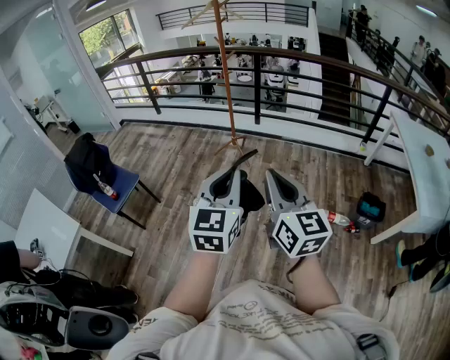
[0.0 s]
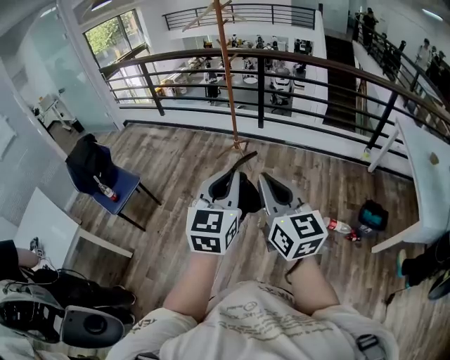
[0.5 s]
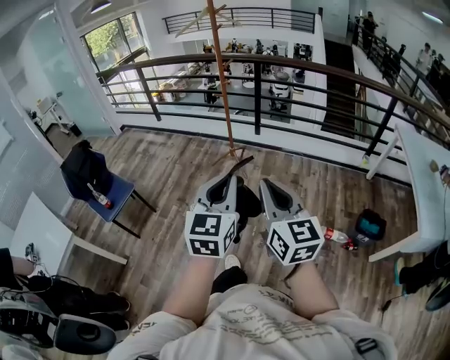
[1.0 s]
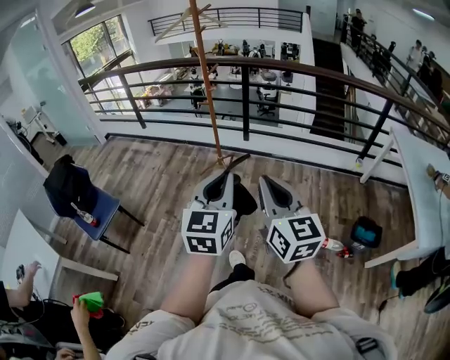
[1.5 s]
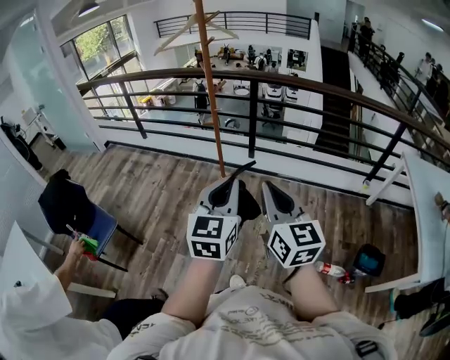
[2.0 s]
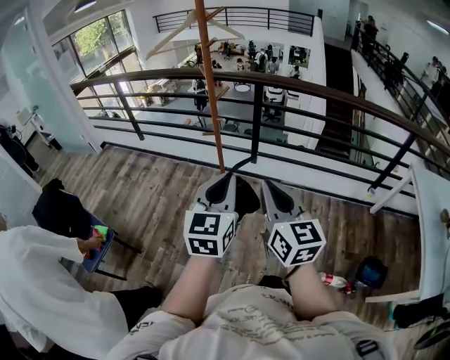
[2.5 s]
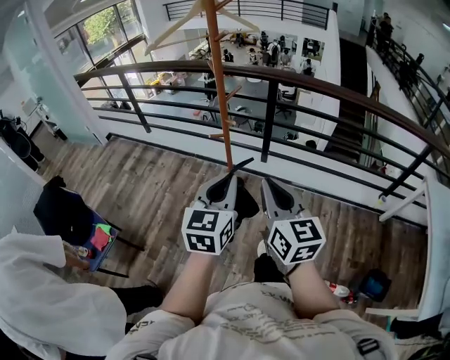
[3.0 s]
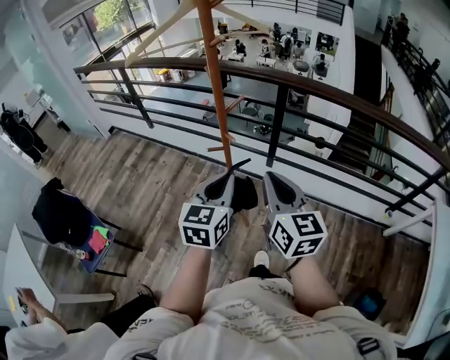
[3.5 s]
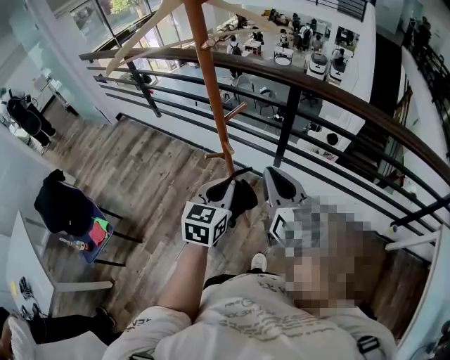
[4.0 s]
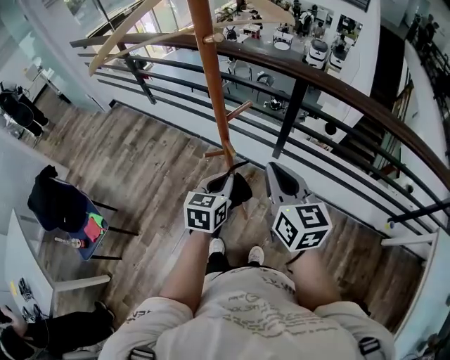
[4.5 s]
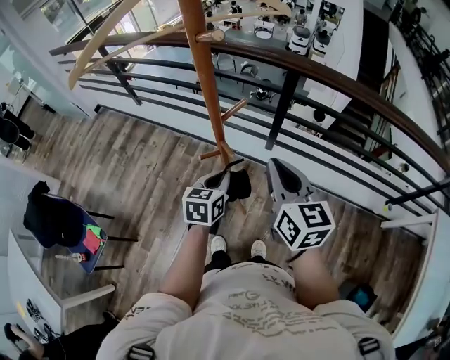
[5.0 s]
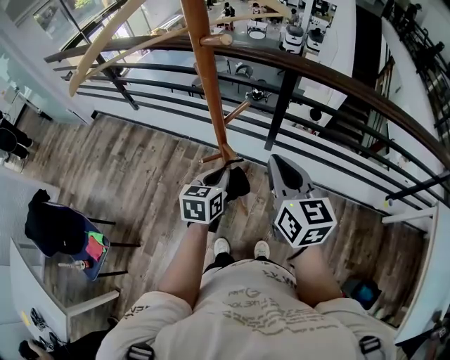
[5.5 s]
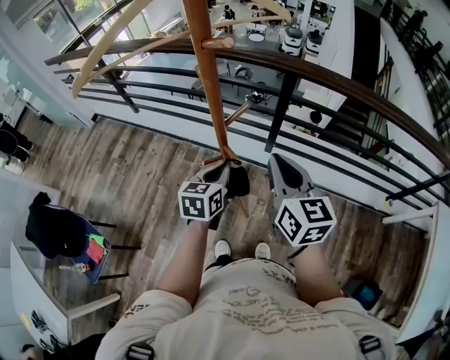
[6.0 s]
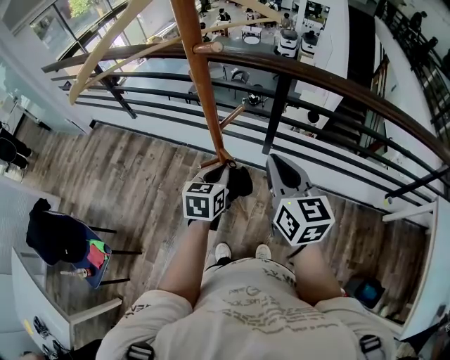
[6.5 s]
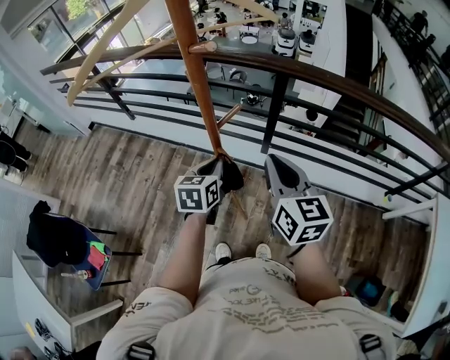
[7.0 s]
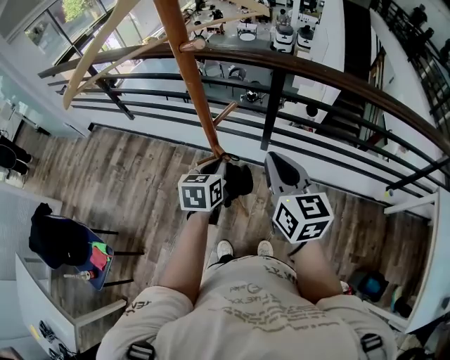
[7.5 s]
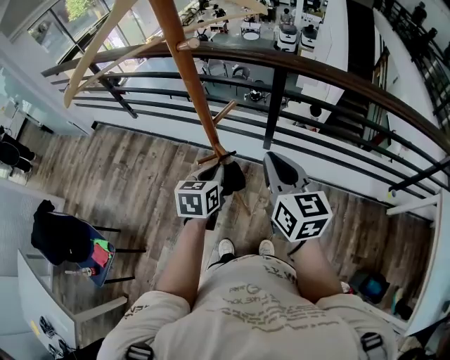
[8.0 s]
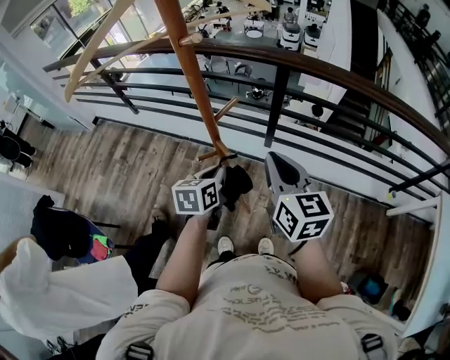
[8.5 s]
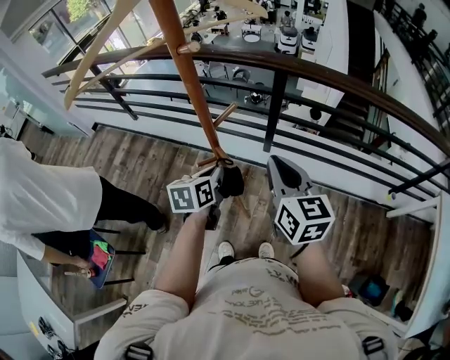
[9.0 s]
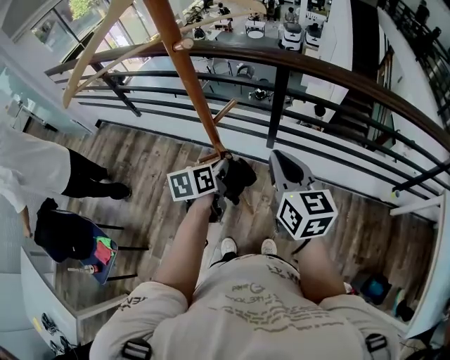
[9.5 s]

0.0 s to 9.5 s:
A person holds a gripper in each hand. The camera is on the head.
0.0 to 2.0 s: The pair of grippers is taken forward, approximately 40 cm.
2.0 to 4.0 s: The two grippers travel together, forward, some 50 cm.
4.0 to 5.5 s: The left gripper shifts roughly 15 cm forward, downward and to the left; the right gripper shifts roughly 10 cm forward.
5.5 to 7.5 s: The grippers stay close to where they were, moving slightly.
7.5 to 9.5 s: The left gripper changes its angle by about 20 degrees.

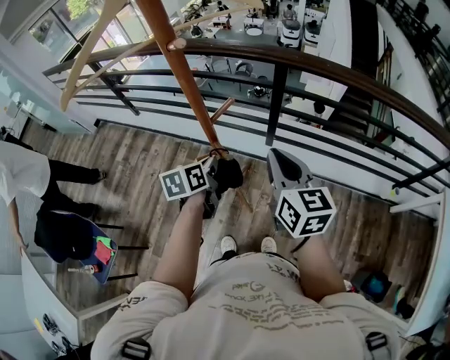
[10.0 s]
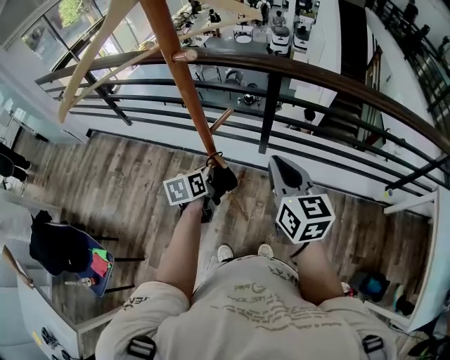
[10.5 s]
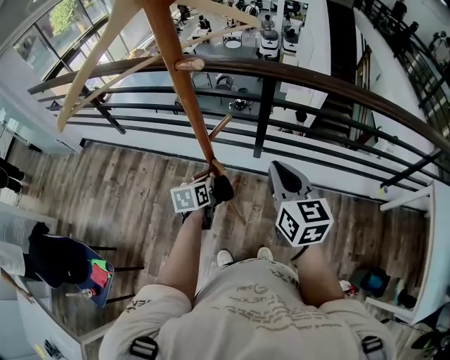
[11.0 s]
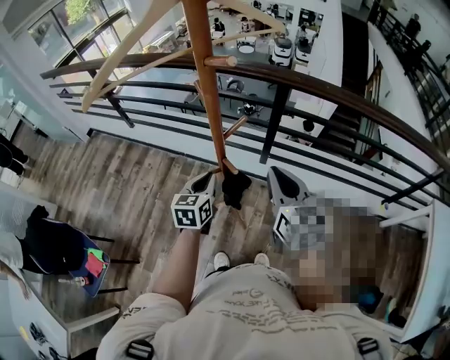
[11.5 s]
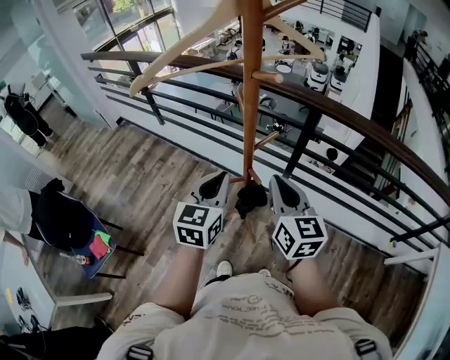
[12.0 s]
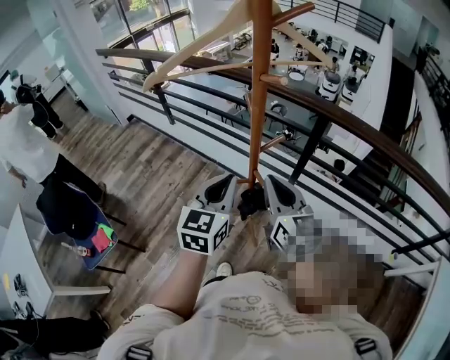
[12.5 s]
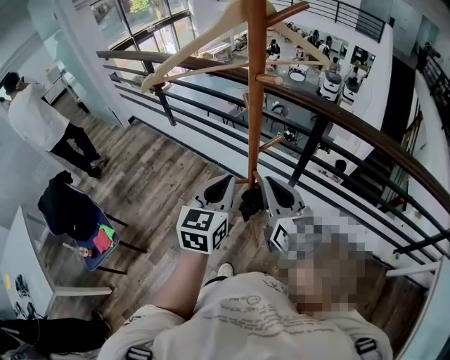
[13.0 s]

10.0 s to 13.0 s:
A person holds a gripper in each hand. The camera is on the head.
10.0 to 11.5 s: The left gripper reaches roughly 10 cm downward, then returns, and rotates about 20 degrees.
11.5 to 13.0 s: The left gripper goes approximately 15 cm upward and backward; the right gripper shifts roughly 5 cm to the left, and changes its angle by about 20 degrees.

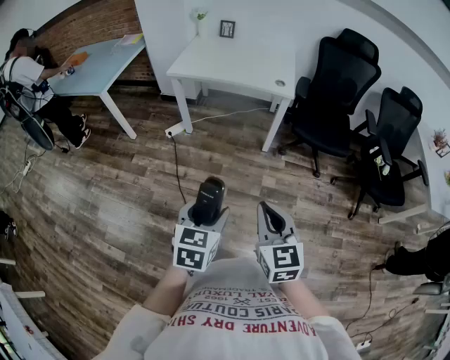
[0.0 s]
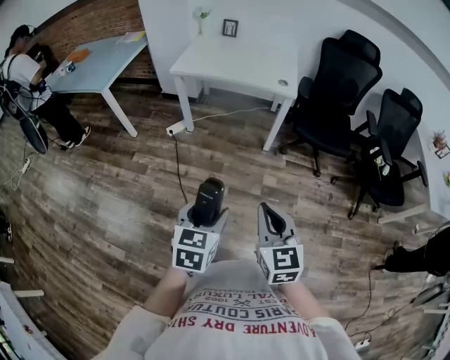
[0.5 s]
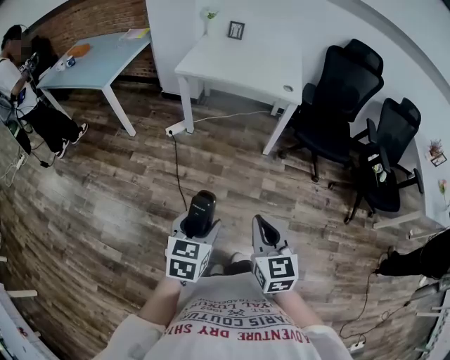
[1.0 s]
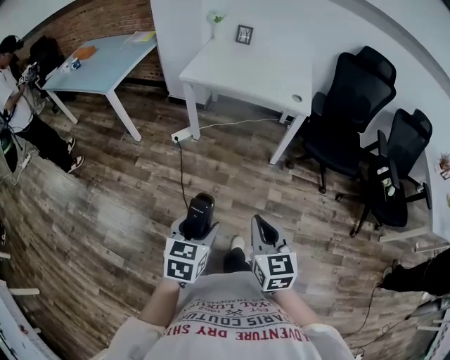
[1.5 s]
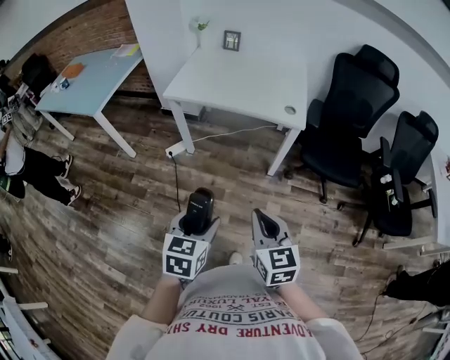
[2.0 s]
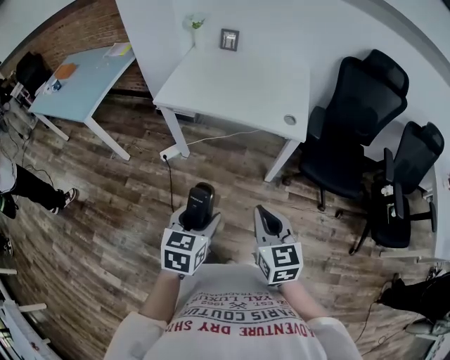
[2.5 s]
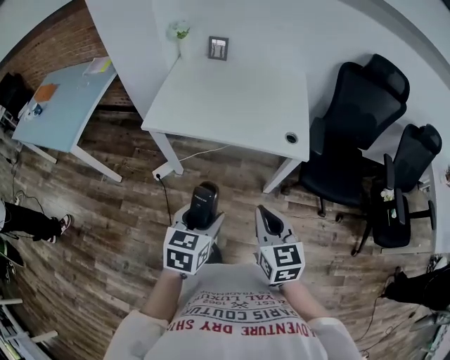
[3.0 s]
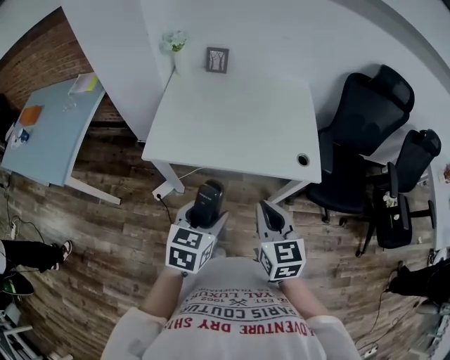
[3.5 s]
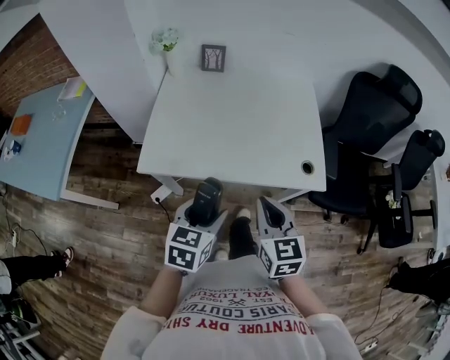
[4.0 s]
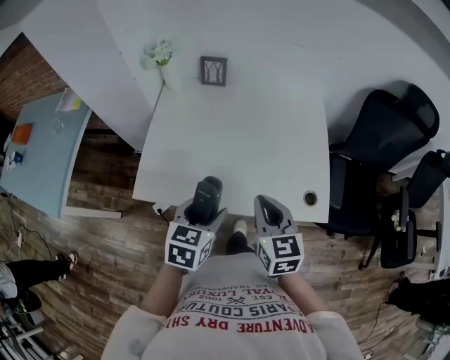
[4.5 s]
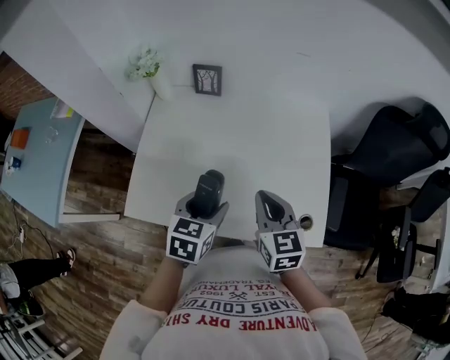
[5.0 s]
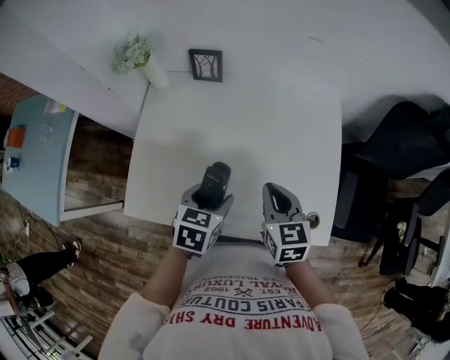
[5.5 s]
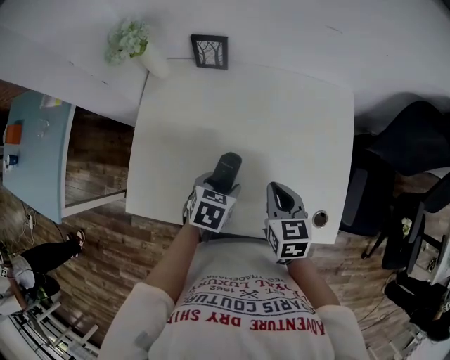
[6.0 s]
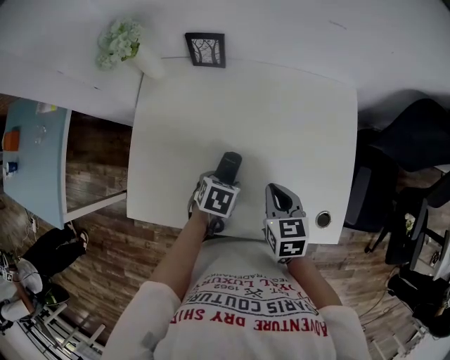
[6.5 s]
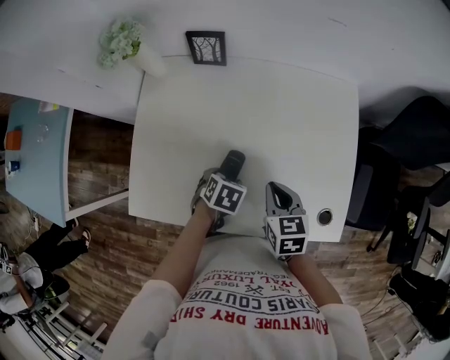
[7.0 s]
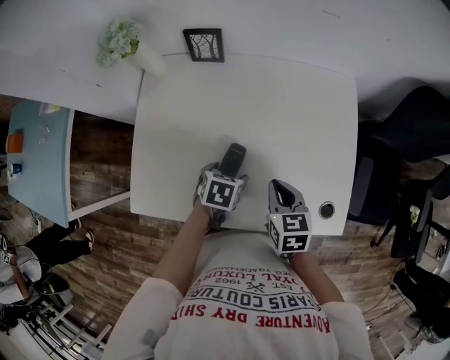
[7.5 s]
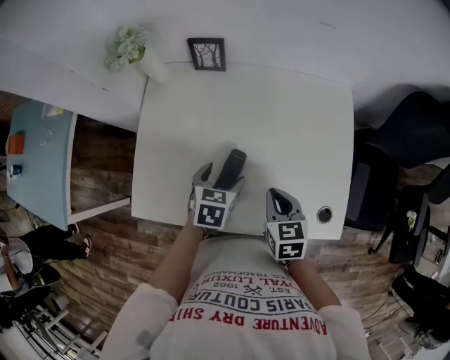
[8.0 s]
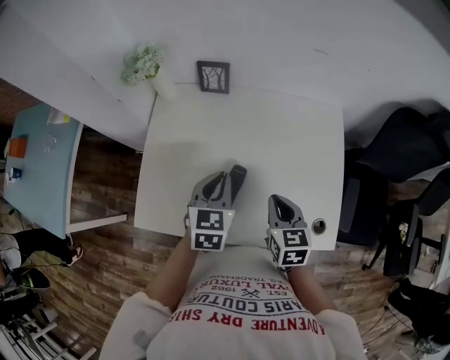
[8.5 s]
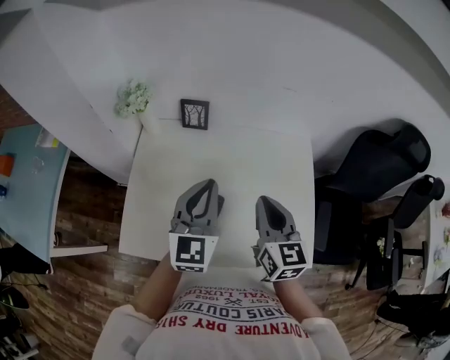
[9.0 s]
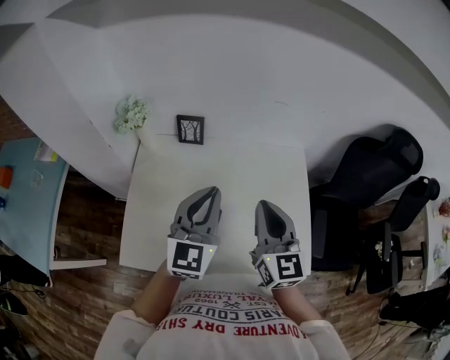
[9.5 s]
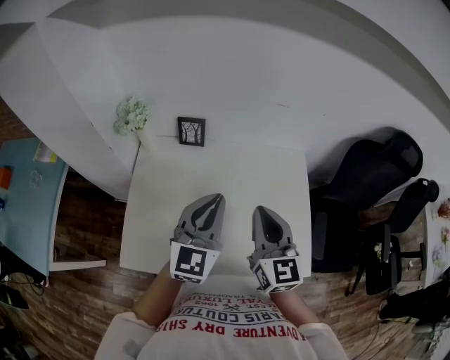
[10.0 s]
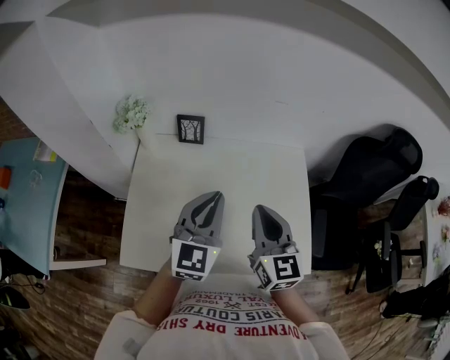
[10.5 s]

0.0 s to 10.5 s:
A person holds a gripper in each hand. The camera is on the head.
0.0 to 2.0 s: Both grippers move forward, some 20 cm.
2.0 to 4.0 s: The pair of grippers is taken forward, roughly 50 cm.
4.0 to 6.5 s: The two grippers go approximately 35 cm forward and downward. The right gripper changes its angle by approximately 20 degrees; the left gripper tips its fingers downward by roughly 30 degrees.
6.5 to 8.5 s: The left gripper moves upward, about 20 cm, angles its fingers upward, by about 40 degrees, and closes up; the right gripper shifts about 5 cm upward.
8.5 to 10.5 s: Both grippers move upward, some 15 cm. The right gripper turns by about 30 degrees, while the left gripper changes its angle by about 30 degrees.

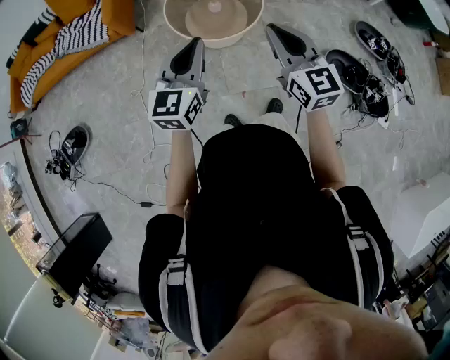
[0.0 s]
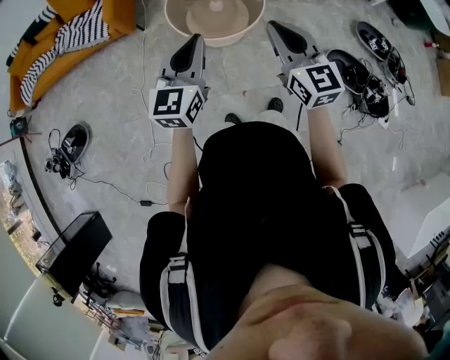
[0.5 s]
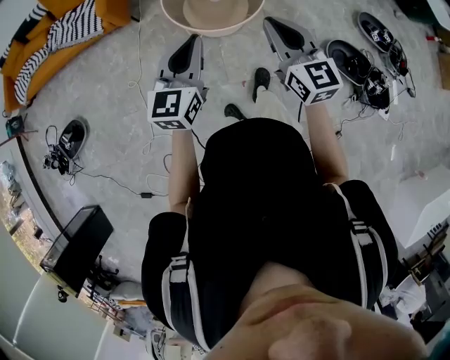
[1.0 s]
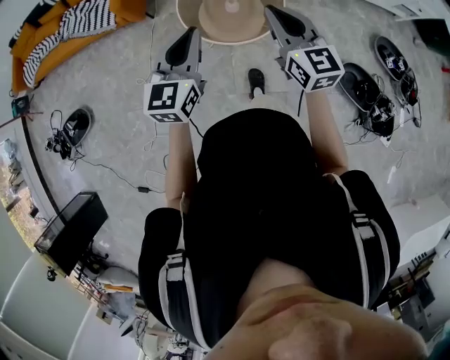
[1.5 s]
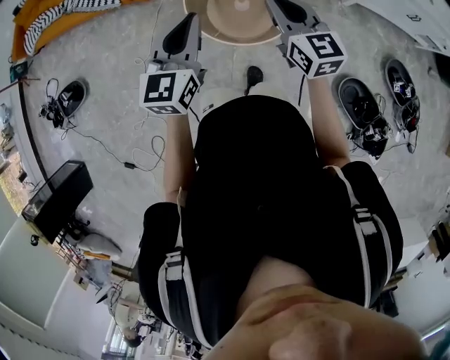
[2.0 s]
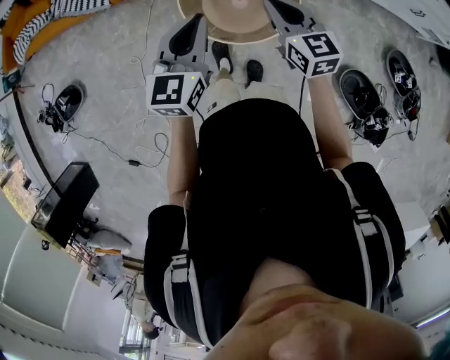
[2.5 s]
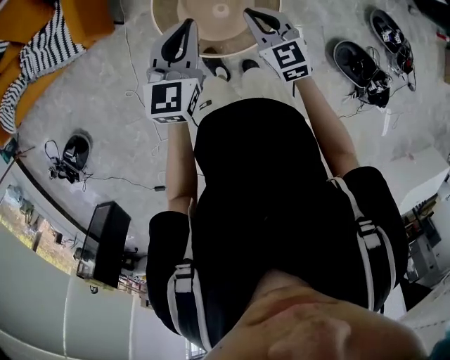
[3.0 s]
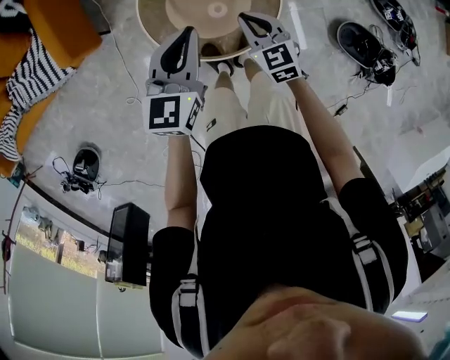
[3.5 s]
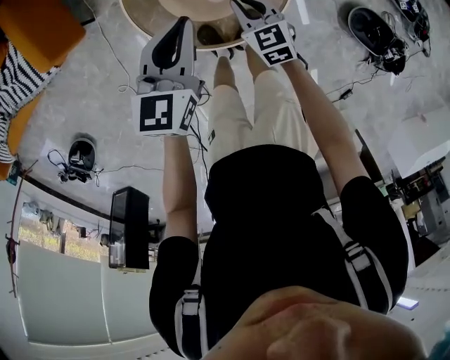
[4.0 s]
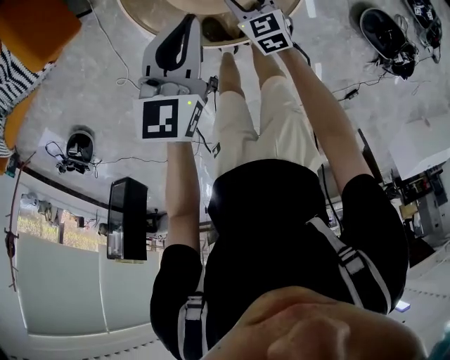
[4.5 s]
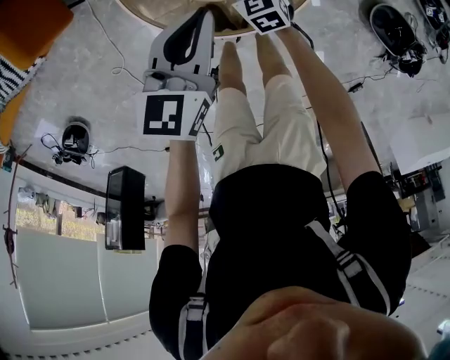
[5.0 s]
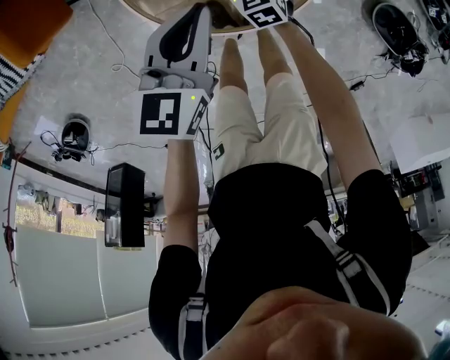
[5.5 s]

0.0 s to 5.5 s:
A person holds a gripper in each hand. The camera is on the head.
0.0 to 2.0 s: The two grippers go approximately 30 cm forward.
2.0 to 3.5 s: The left gripper travels forward and downward by some 30 cm, and rotates some 30 degrees; the right gripper goes roughly 30 cm downward and forward, and swivels approximately 30 degrees.
3.5 to 5.5 s: The left gripper goes some 20 cm downward; the right gripper shifts approximately 30 cm downward, and opens its fingers.
